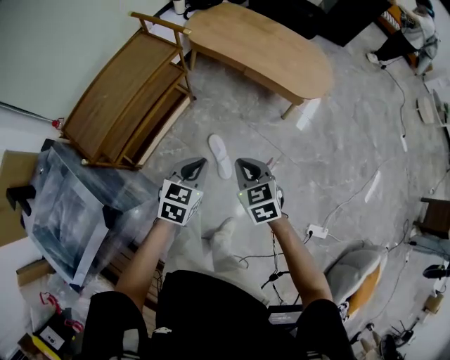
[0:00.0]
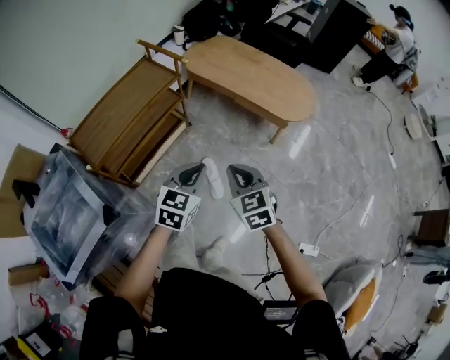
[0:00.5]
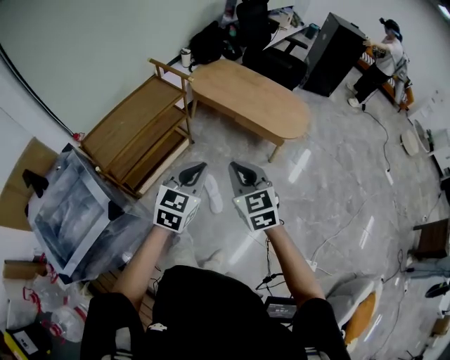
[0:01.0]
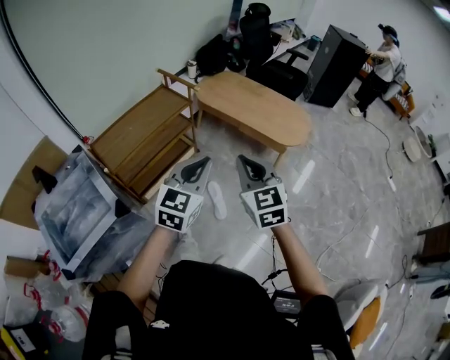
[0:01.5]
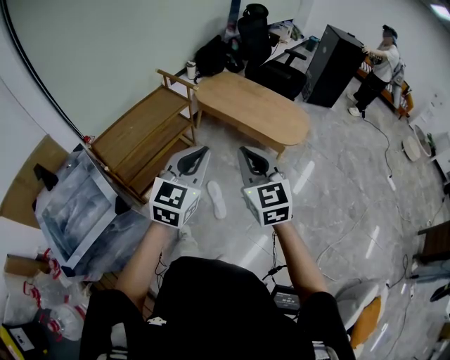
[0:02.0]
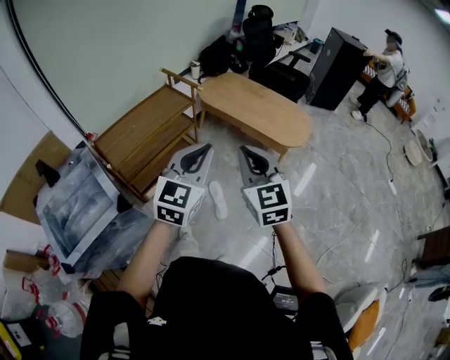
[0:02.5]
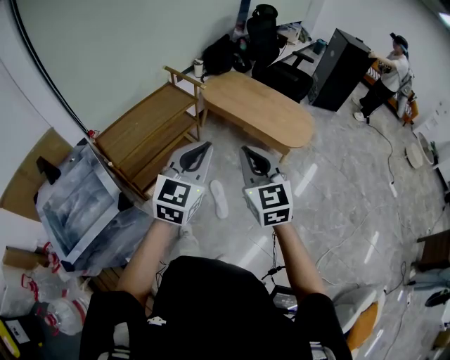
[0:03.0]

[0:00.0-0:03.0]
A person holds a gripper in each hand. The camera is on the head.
0:00.0 to 0:01.5: The grippers both shift upward by roughly 25 cm. The left gripper rotates about 30 degrees. The right gripper changes its angle by approximately 30 degrees.
0:01.5 to 0:03.0: The left gripper travels upward by some 5 cm.

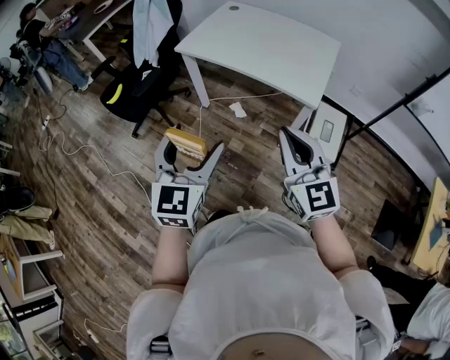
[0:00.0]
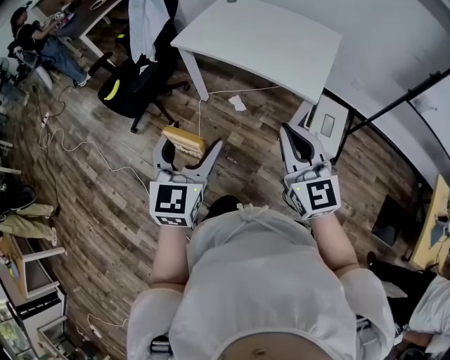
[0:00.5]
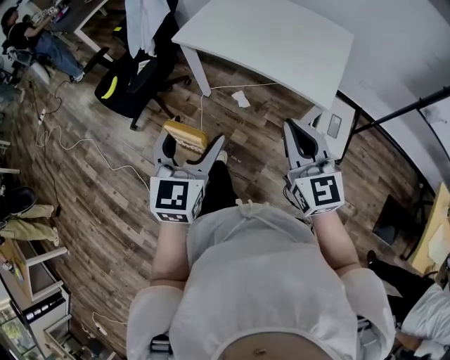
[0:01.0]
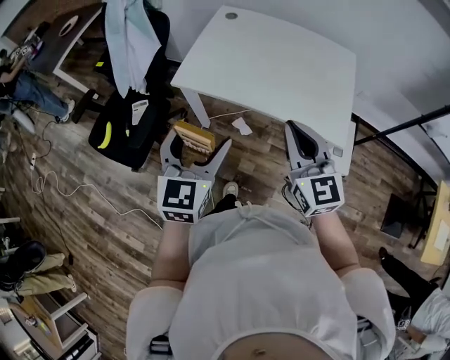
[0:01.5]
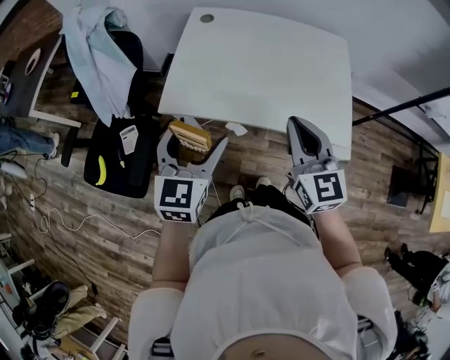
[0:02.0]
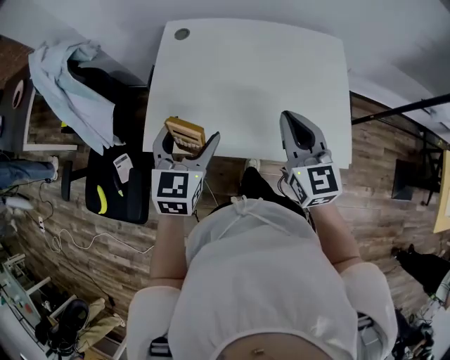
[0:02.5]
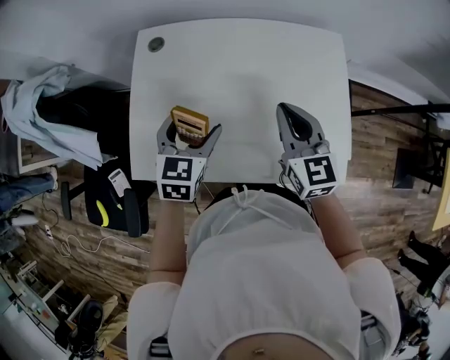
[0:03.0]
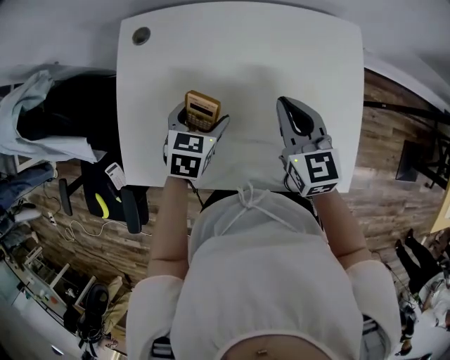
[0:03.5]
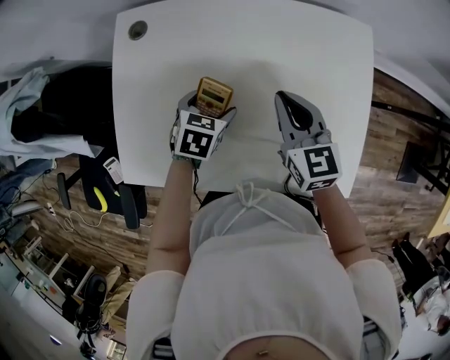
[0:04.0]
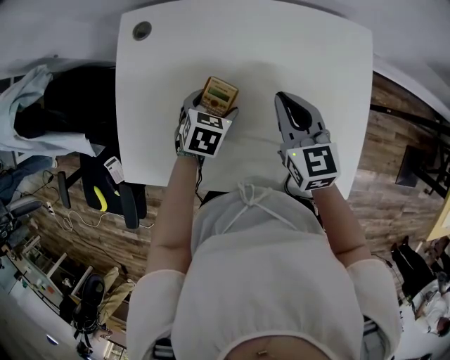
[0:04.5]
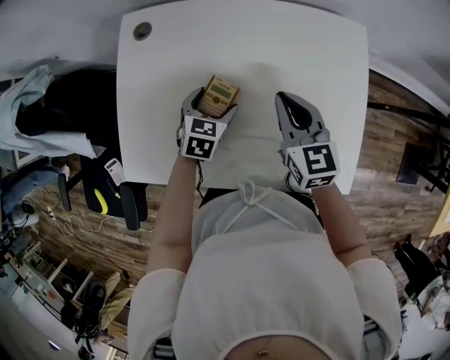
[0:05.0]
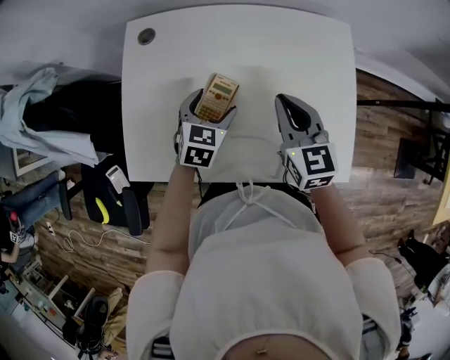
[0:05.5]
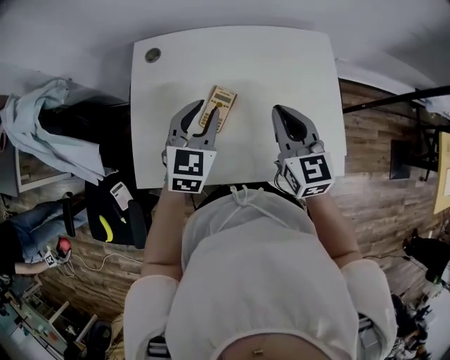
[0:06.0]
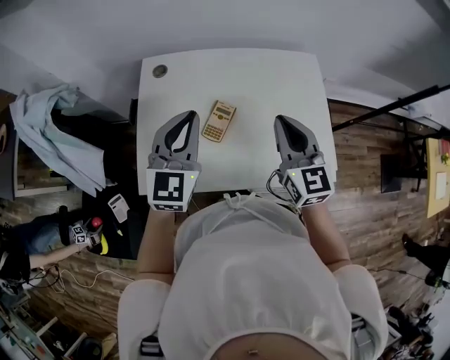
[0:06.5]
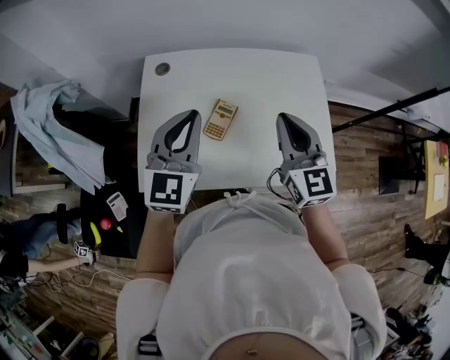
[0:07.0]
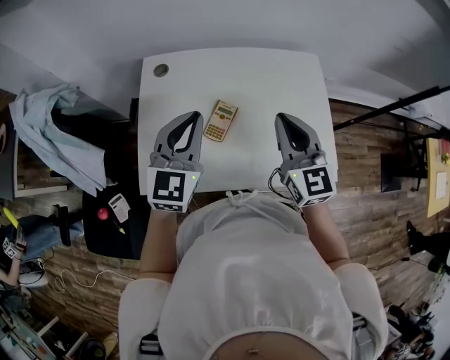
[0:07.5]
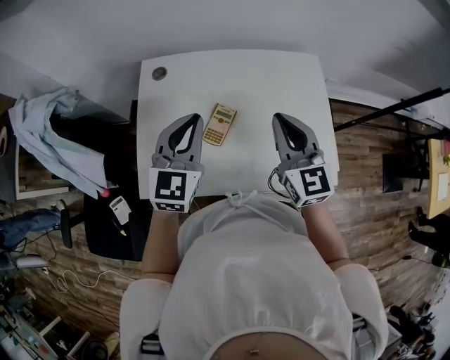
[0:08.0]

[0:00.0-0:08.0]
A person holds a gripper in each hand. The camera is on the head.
0:00.0 to 0:02.0: The pair of grippers is taken forward, roughly 50 cm. The left gripper swivels some 20 degrees, while the right gripper swivels some 30 degrees.
0:02.0 to 0:04.0: Both grippers travel together forward and downward, about 40 cm. The left gripper tilts its fingers approximately 40 degrees downward, while the right gripper swivels some 20 degrees.
0:04.0 to 0:06.0: The right gripper goes some 15 cm upward and backward. The left gripper goes about 20 cm upward, tilts its fingers roughly 30 degrees upward, and closes its fingers.
0:06.0 to 0:08.0: Both grippers move upward, about 10 cm.

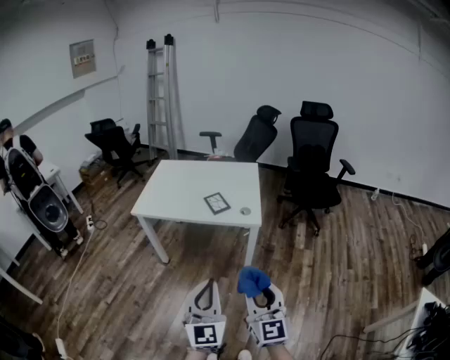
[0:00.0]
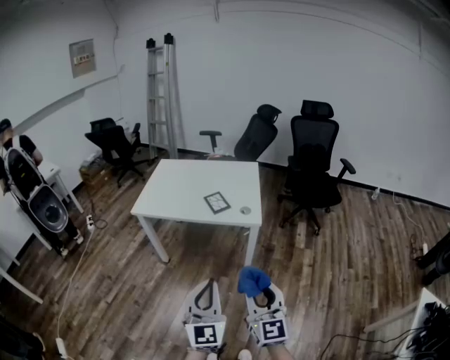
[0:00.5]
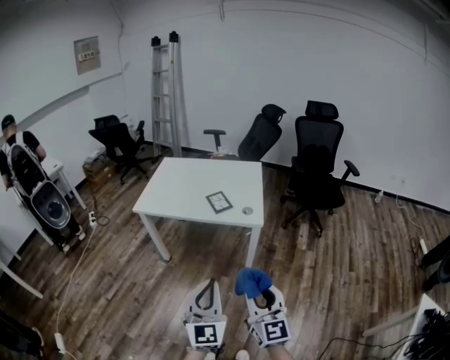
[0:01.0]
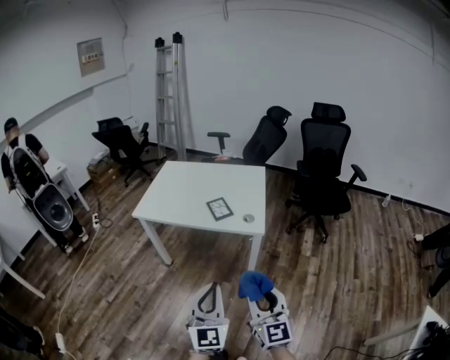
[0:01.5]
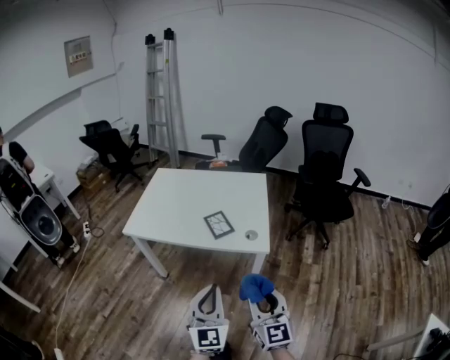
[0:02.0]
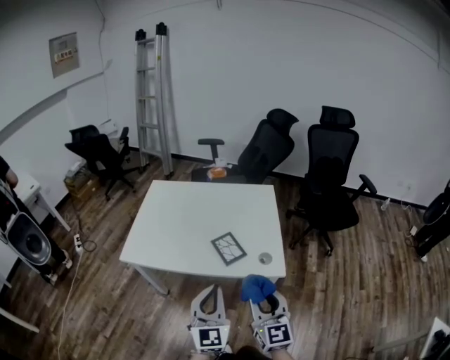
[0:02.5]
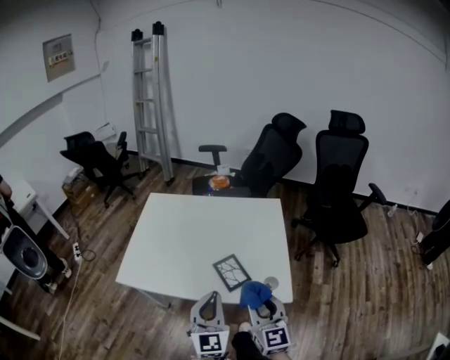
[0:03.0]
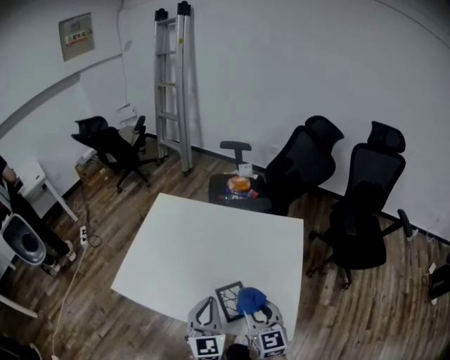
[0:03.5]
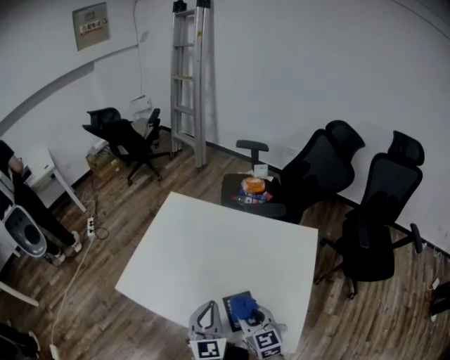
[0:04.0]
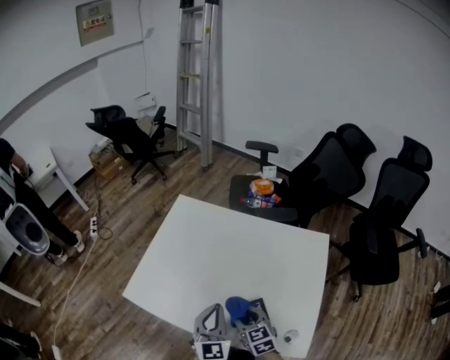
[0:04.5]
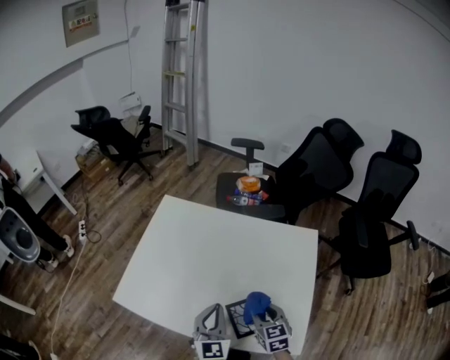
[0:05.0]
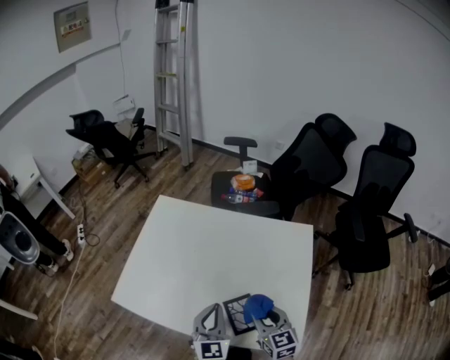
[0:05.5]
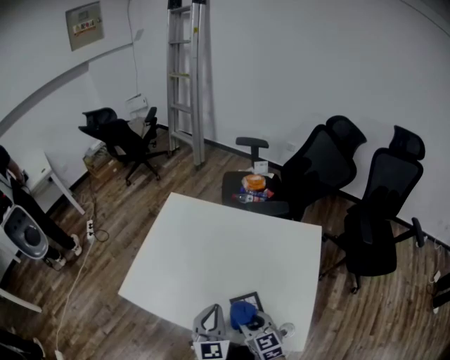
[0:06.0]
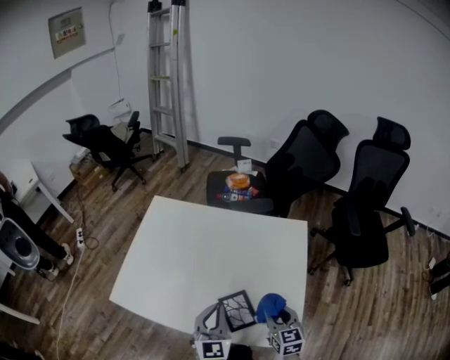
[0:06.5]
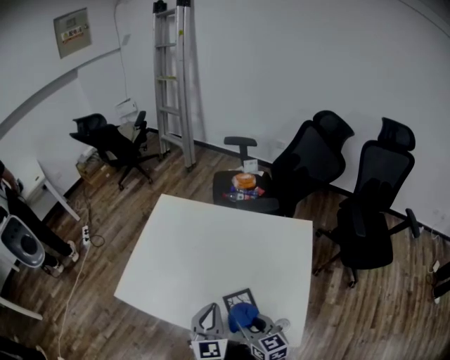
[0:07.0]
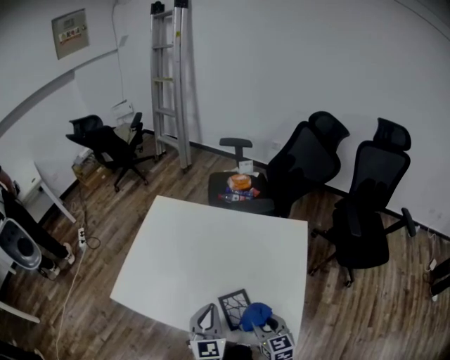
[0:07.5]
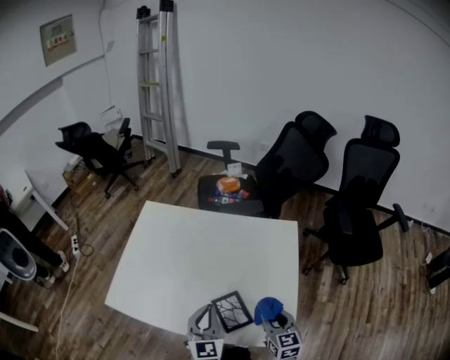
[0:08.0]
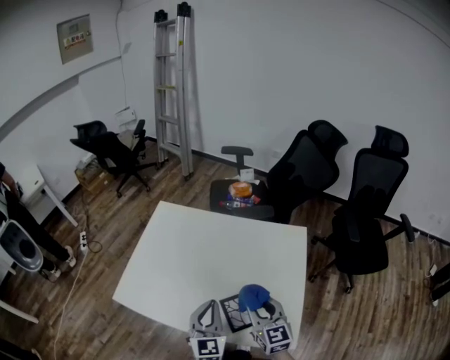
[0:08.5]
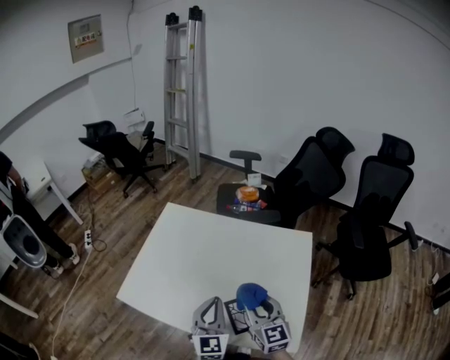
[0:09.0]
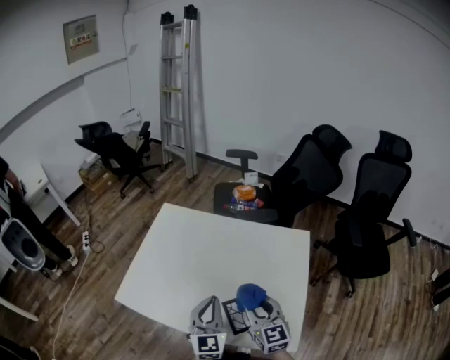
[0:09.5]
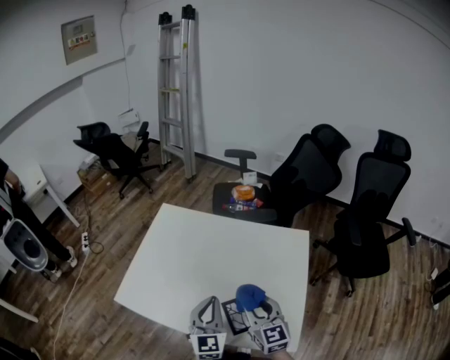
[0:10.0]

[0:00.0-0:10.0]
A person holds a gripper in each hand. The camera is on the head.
0:00.0 to 0:02.0: The two grippers go about 20 cm forward.
0:02.0 to 0:04.0: The pair of grippers is taken forward, some 50 cm. The right gripper turns by roughly 30 degrees.
0:04.0 to 0:06.0: The right gripper goes left and right, some 10 cm each way, reversing 2 times.
0:06.0 to 0:08.0: The right gripper goes left and right, about 15 cm each way, reversing 2 times, and rotates some 20 degrees.
0:08.0 to 0:10.0: The right gripper goes about 15 cm upward, to the left and forward, and changes its angle by about 20 degrees. The left gripper moves roughly 5 cm.

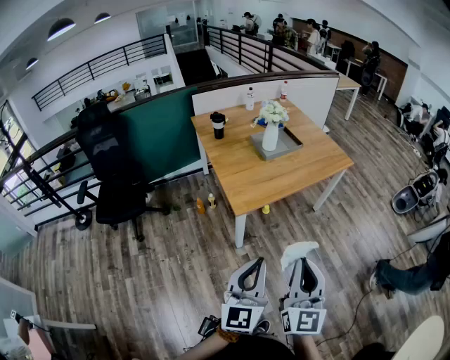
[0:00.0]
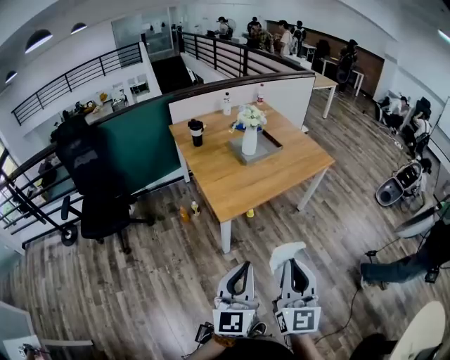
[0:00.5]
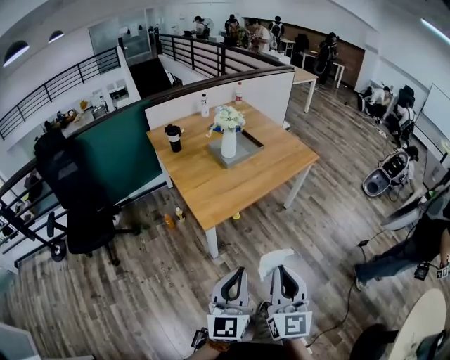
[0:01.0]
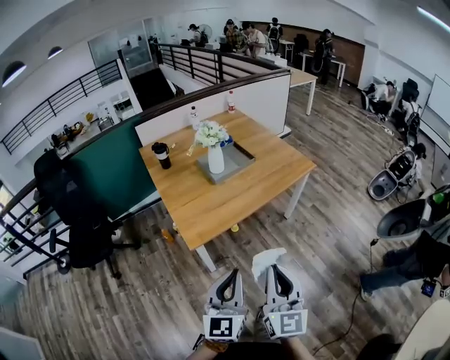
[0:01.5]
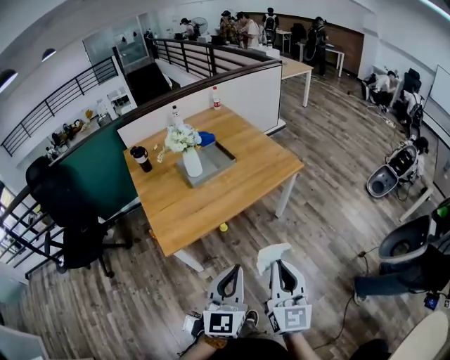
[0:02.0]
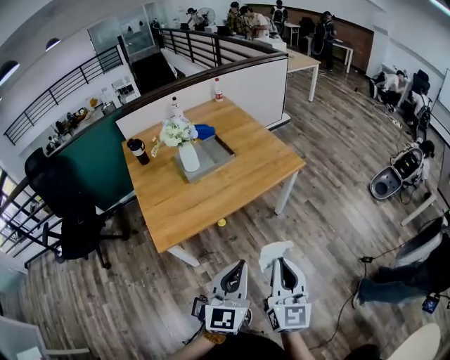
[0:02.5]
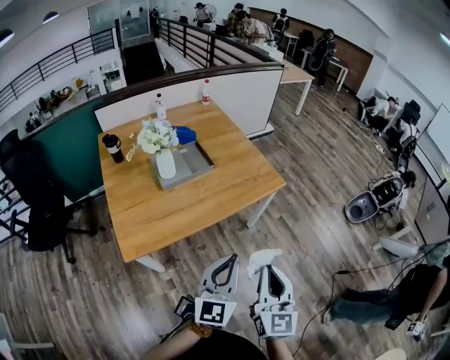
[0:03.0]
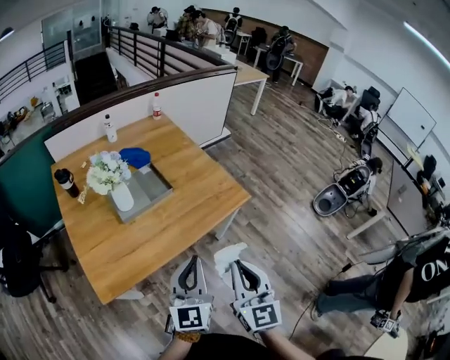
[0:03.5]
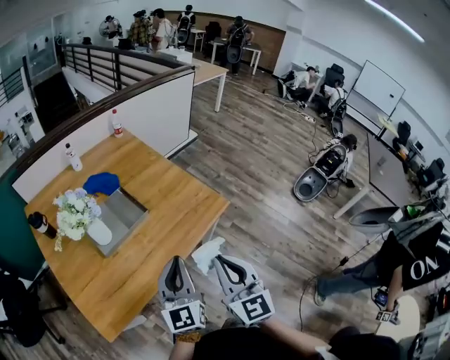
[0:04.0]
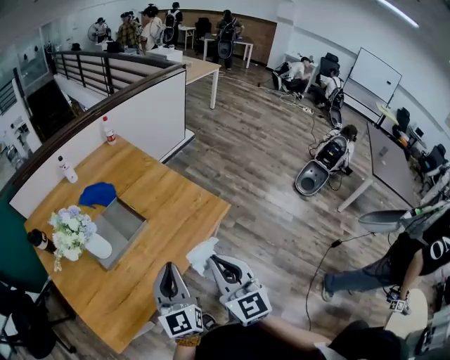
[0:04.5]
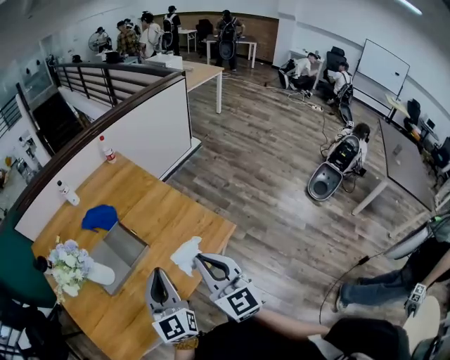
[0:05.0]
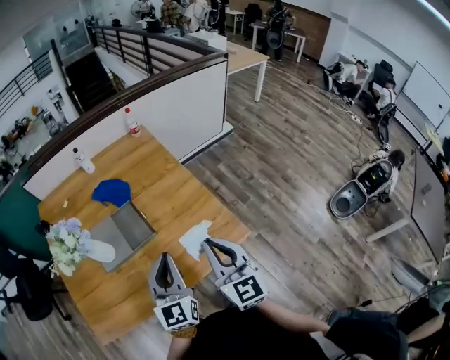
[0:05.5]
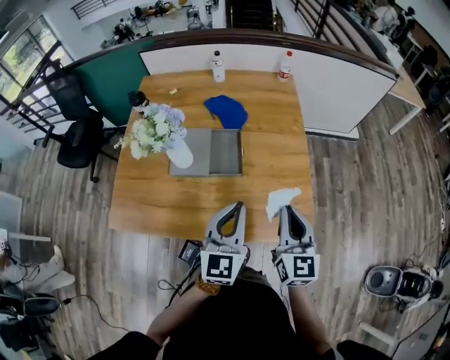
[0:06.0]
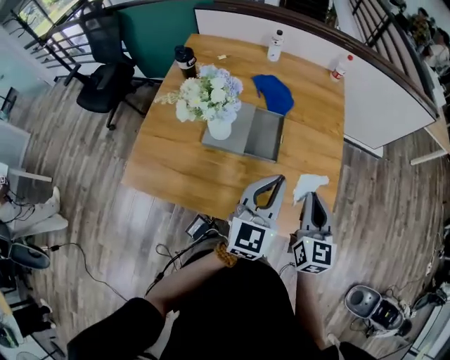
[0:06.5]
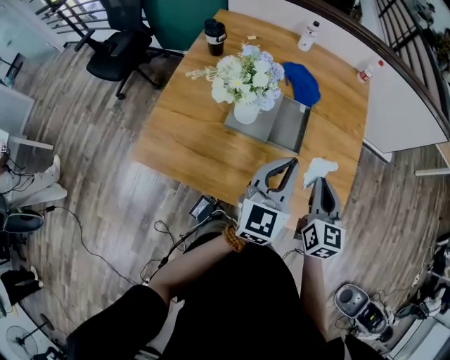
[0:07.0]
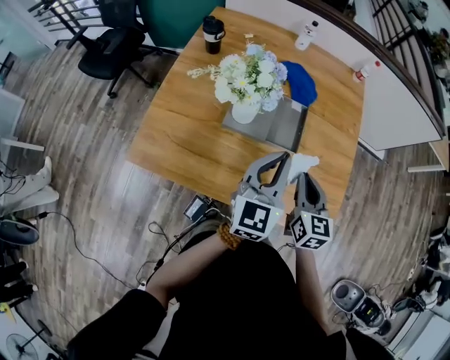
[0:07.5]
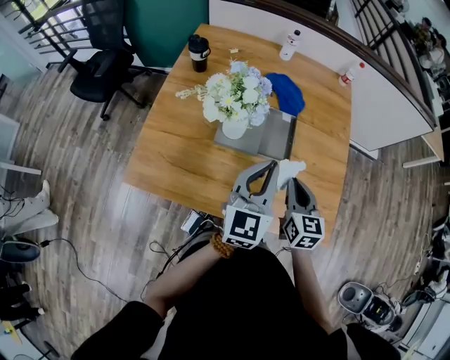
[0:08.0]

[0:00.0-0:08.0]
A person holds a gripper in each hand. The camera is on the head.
0:00.0 to 0:02.0: The grippers both shift to the right and forward by about 30 cm.
0:02.0 to 0:04.0: The two grippers go about 35 cm forward.
0:04.0 to 0:06.0: The right gripper moves approximately 30 cm, and swivels approximately 30 degrees. Meanwhile the left gripper changes place by some 20 cm, and swivels some 30 degrees.
0:06.0 to 0:08.0: The right gripper travels to the left, downward and forward by about 20 cm. The left gripper is displaced to the left and forward by about 15 cm.
